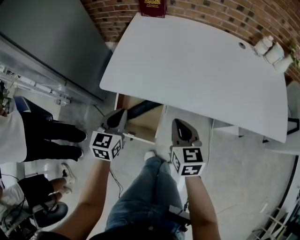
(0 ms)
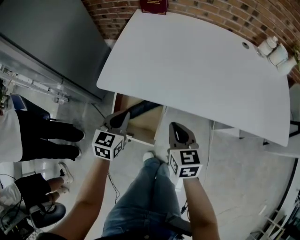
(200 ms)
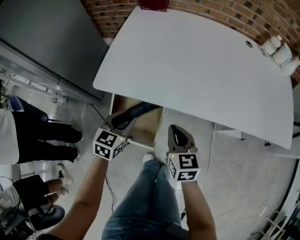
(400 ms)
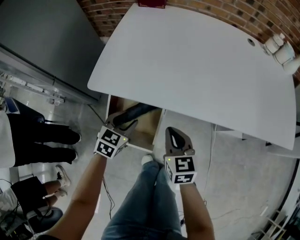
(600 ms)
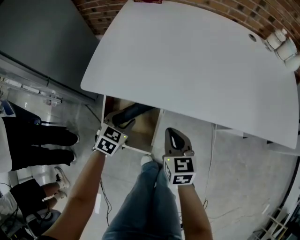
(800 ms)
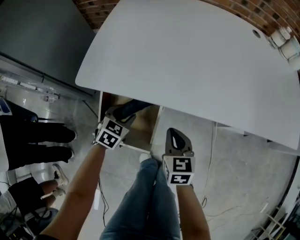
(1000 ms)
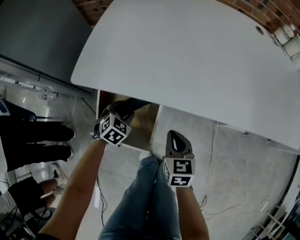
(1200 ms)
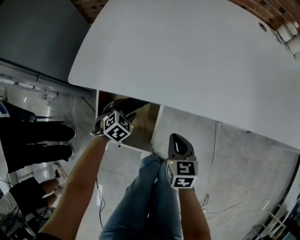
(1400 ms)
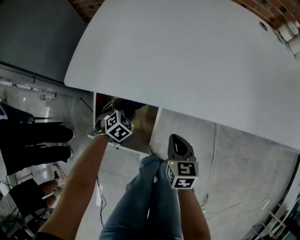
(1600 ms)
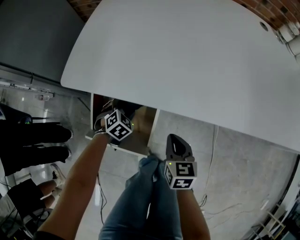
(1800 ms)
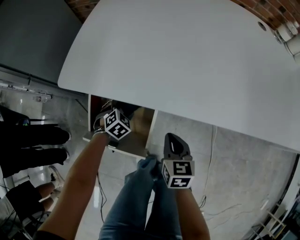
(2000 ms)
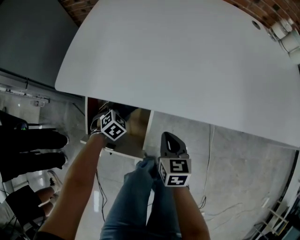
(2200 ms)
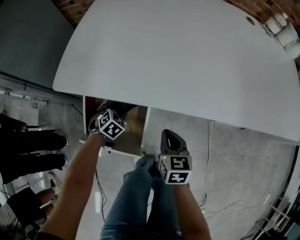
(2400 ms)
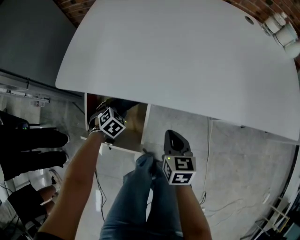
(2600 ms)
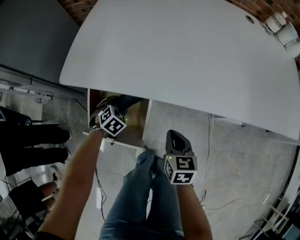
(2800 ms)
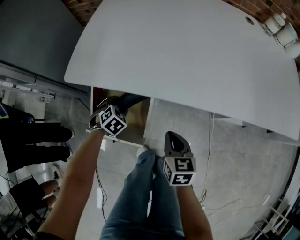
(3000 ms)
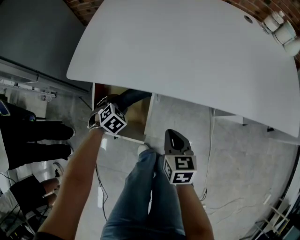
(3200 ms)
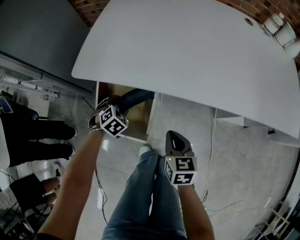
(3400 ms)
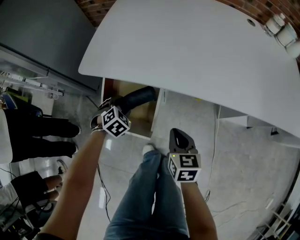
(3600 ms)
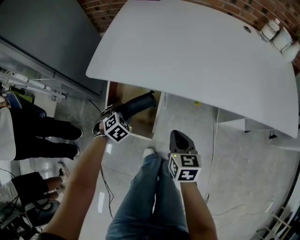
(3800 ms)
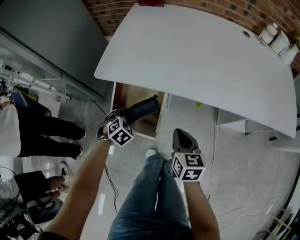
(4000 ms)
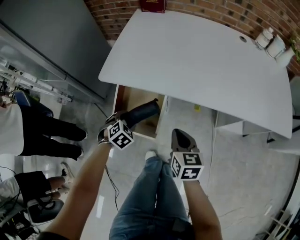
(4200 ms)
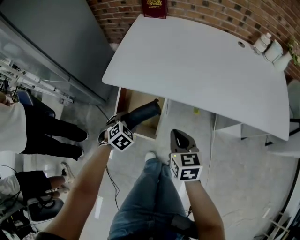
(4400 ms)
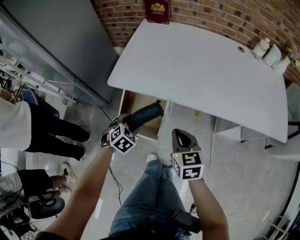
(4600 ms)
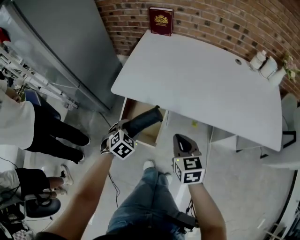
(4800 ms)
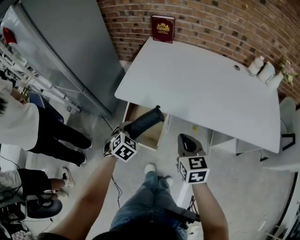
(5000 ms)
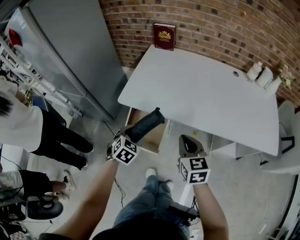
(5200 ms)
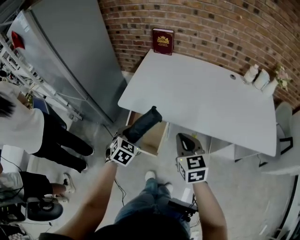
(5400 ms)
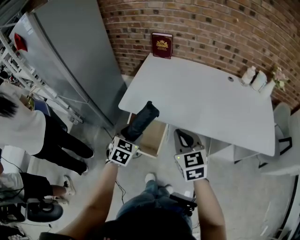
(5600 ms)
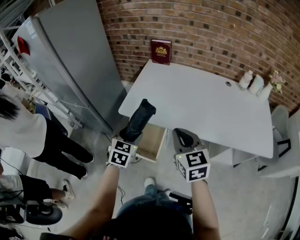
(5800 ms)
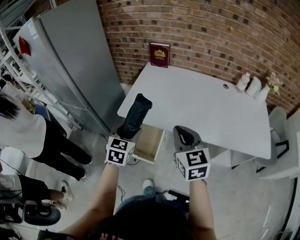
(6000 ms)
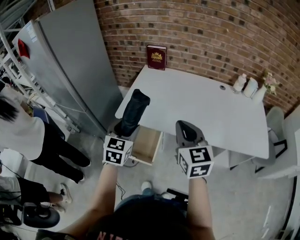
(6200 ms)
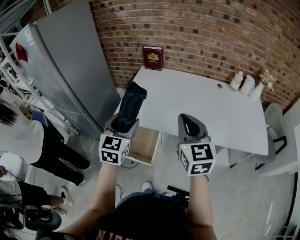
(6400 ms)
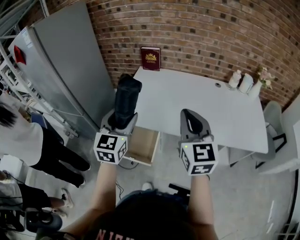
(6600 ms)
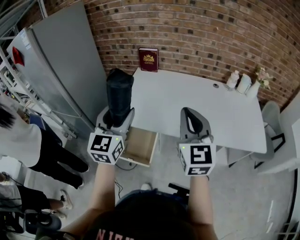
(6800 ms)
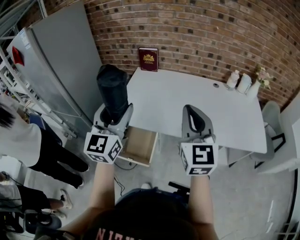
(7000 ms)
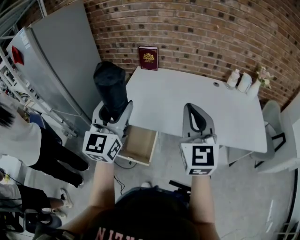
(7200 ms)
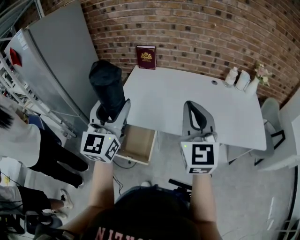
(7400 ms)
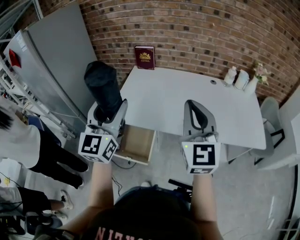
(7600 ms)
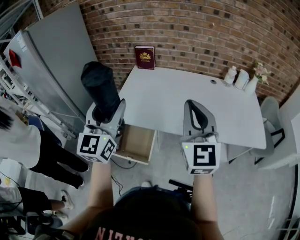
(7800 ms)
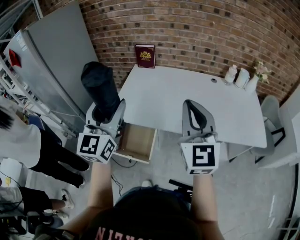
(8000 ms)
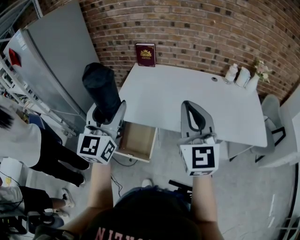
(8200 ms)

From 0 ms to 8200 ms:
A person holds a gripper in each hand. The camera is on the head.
From 0 ms to 1600 ms: The grippers both shift downward by some 30 cm. The left gripper tips its fingers downward by about 40 degrees, and opens.
From 1600 ms to 3200 ms: The left gripper moves roughly 5 cm, while the right gripper moves about 5 cm.
From 3200 ms to 5000 ms: The left gripper shifts some 30 cm upward and backward, while the right gripper is displaced upward by some 25 cm.
From 5000 ms to 6600 ms: The grippers both shift upward by some 30 cm. The right gripper changes its angle by some 30 degrees. Meanwhile the left gripper angles its fingers upward, by approximately 50 degrees.
From 6600 ms to 8200 ms: The left gripper is displaced upward by roughly 10 cm.

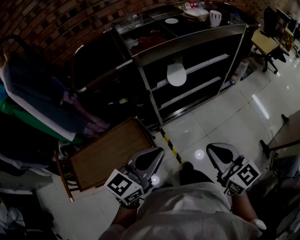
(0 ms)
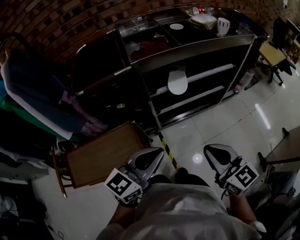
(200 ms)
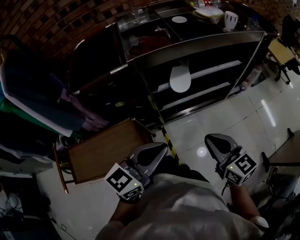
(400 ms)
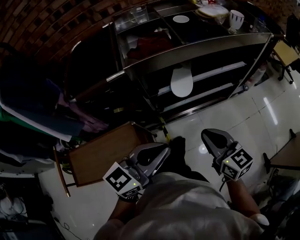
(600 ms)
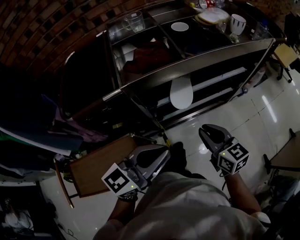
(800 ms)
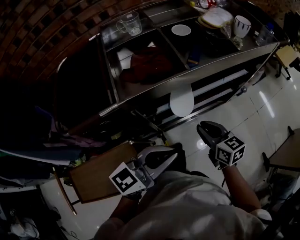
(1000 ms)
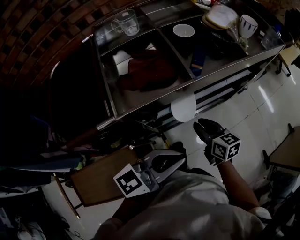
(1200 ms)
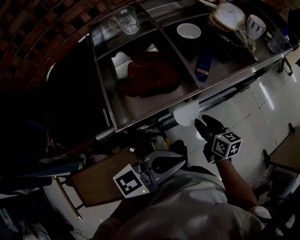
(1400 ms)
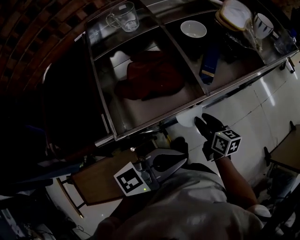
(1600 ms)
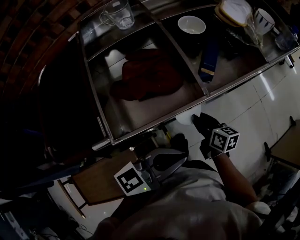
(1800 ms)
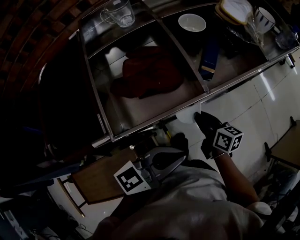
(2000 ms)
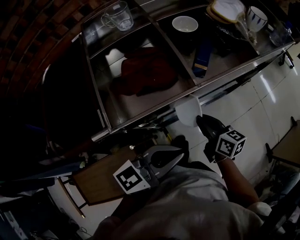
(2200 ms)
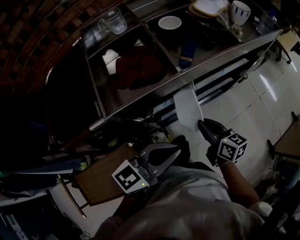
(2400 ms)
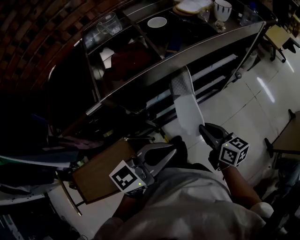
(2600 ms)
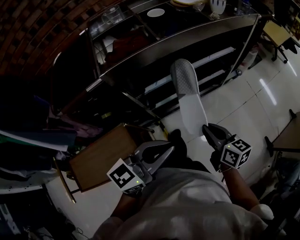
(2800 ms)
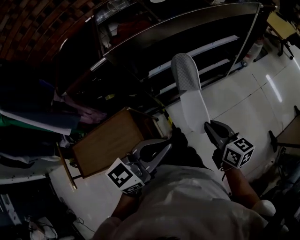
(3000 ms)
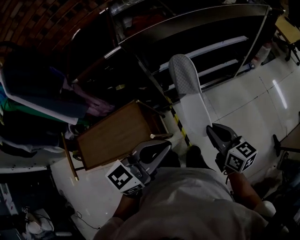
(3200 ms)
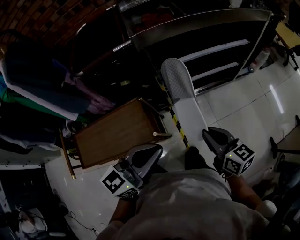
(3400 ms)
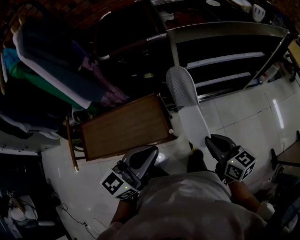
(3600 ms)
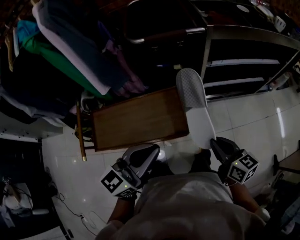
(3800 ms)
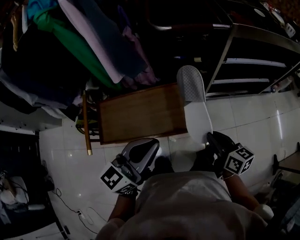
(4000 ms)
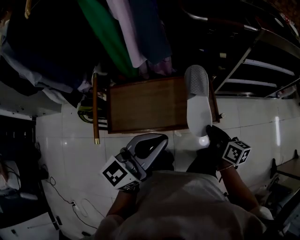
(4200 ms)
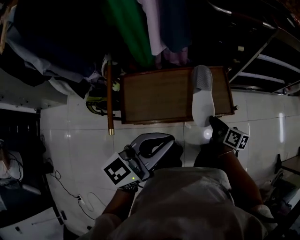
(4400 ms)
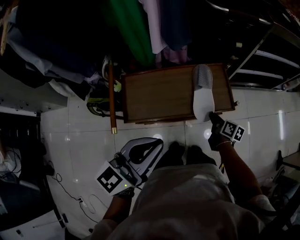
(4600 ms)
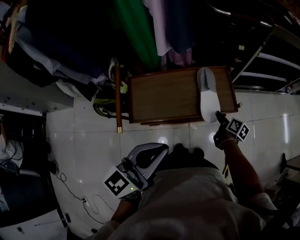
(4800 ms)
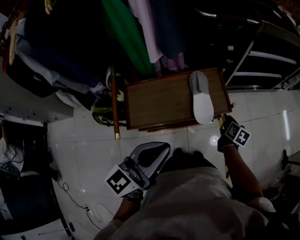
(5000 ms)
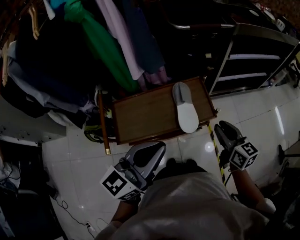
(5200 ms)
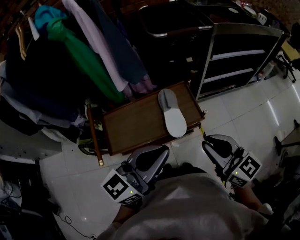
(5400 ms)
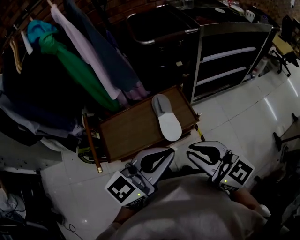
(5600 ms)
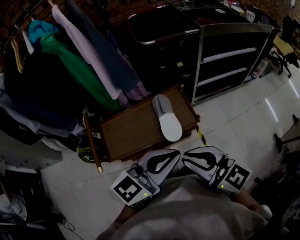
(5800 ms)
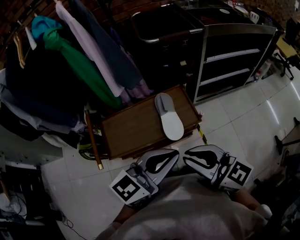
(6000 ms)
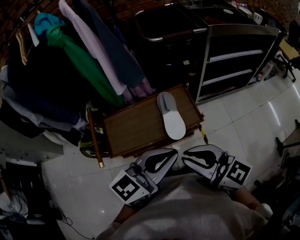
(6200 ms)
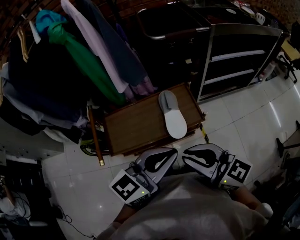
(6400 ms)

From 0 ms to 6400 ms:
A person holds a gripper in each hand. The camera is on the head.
From 0 ms to 1600 ms: The right gripper is displaced forward and downward by some 50 cm, turns by approximately 40 degrees, and opens its fingers. Meanwhile the left gripper moves forward, about 30 cm, and rotates roughly 20 degrees.
From 1600 ms to 3200 ms: The two grippers go roughly 25 cm backward. The right gripper closes its fingers.
From 3200 ms to 4800 ms: The two grippers travel together, to the left, roughly 50 cm. The left gripper swivels approximately 20 degrees. Meanwhile the right gripper moves downward, some 20 cm, swivels about 40 degrees, and opens its fingers.
From 4800 ms to 6400 ms: The left gripper travels to the right by approximately 15 cm. Meanwhile the right gripper is displaced upward and backward by about 40 cm, points its fingers approximately 40 degrees further upward, and closes its fingers.

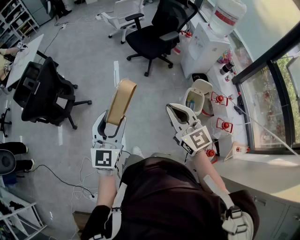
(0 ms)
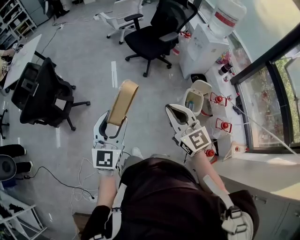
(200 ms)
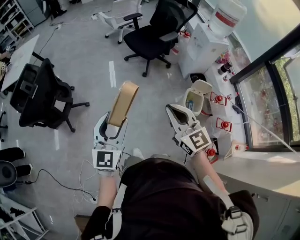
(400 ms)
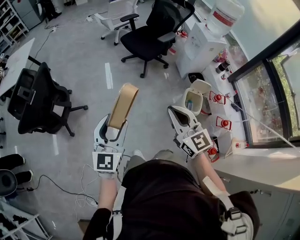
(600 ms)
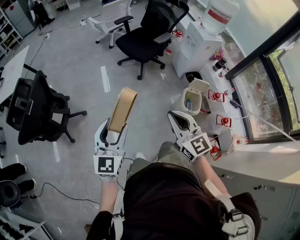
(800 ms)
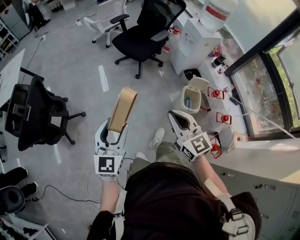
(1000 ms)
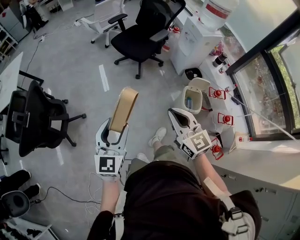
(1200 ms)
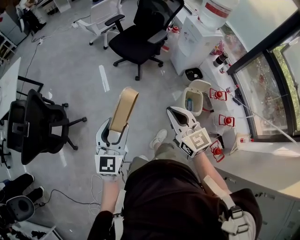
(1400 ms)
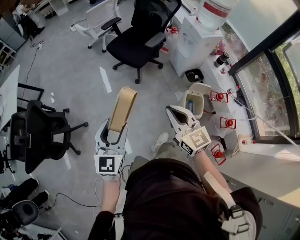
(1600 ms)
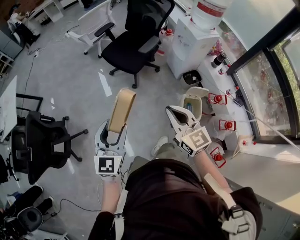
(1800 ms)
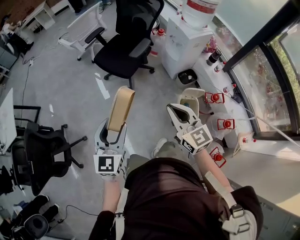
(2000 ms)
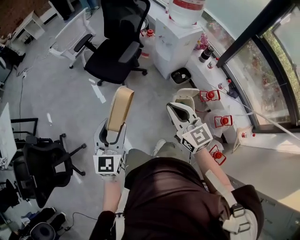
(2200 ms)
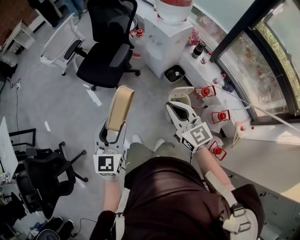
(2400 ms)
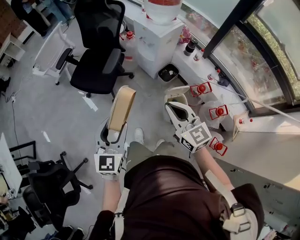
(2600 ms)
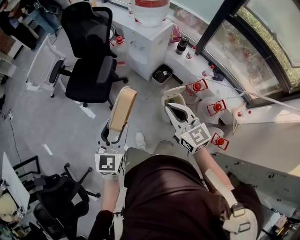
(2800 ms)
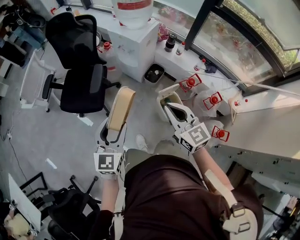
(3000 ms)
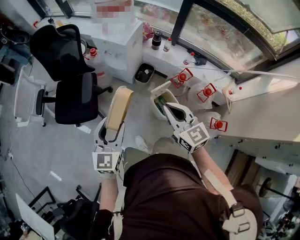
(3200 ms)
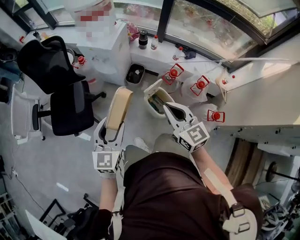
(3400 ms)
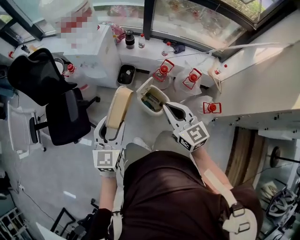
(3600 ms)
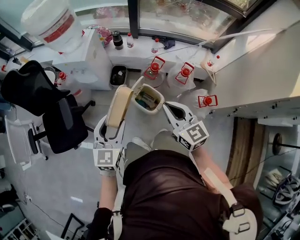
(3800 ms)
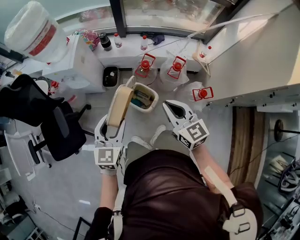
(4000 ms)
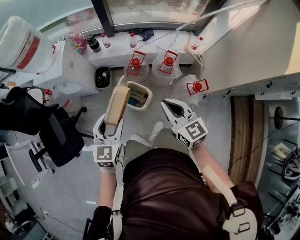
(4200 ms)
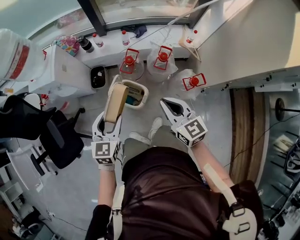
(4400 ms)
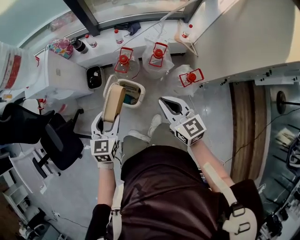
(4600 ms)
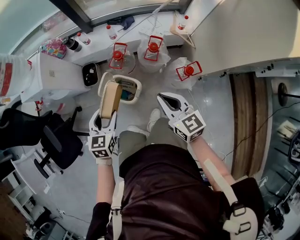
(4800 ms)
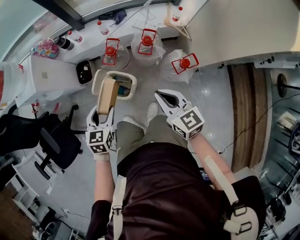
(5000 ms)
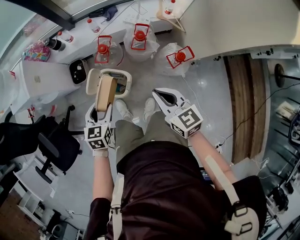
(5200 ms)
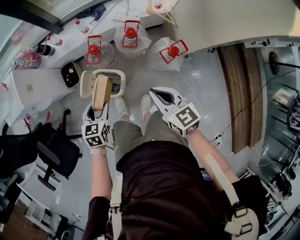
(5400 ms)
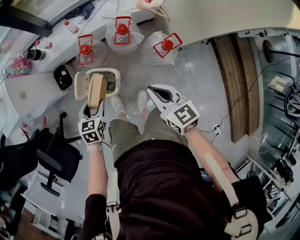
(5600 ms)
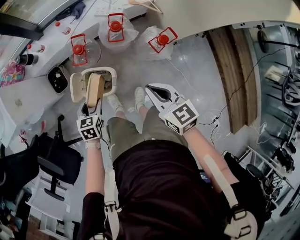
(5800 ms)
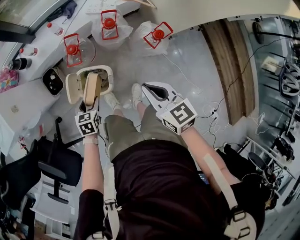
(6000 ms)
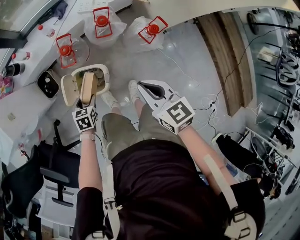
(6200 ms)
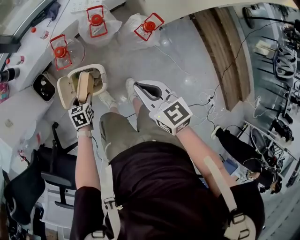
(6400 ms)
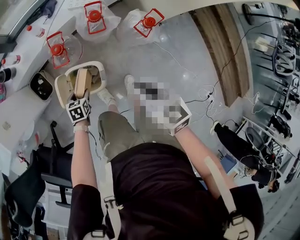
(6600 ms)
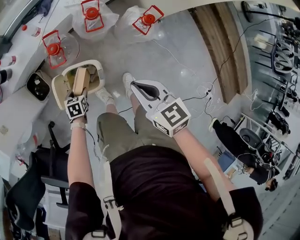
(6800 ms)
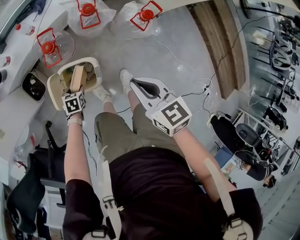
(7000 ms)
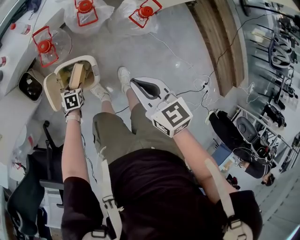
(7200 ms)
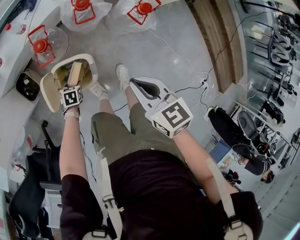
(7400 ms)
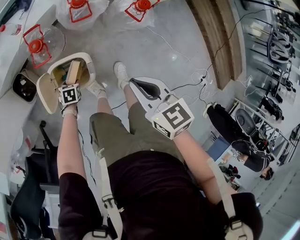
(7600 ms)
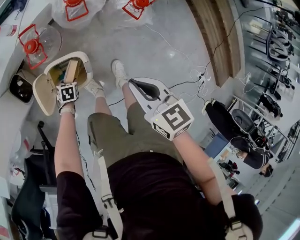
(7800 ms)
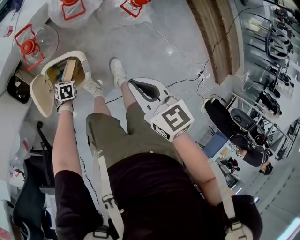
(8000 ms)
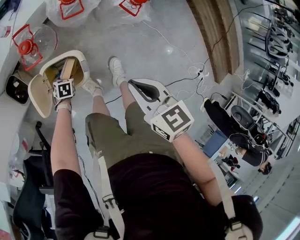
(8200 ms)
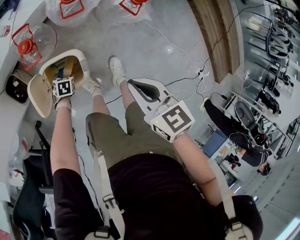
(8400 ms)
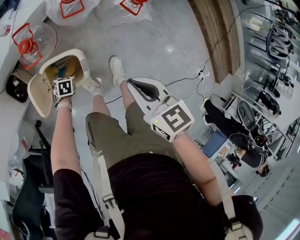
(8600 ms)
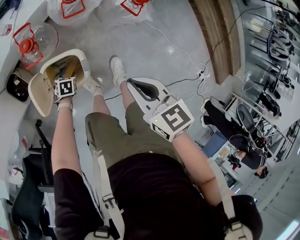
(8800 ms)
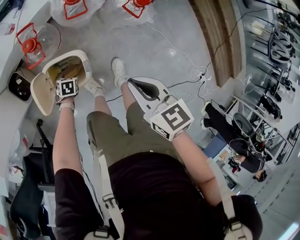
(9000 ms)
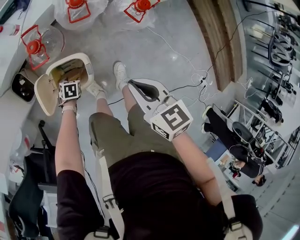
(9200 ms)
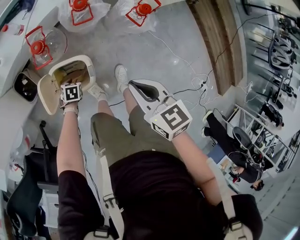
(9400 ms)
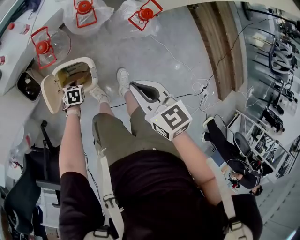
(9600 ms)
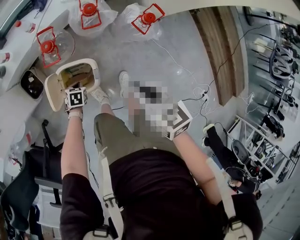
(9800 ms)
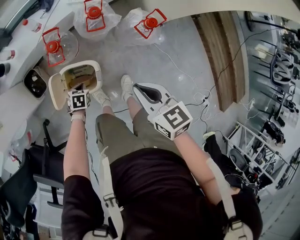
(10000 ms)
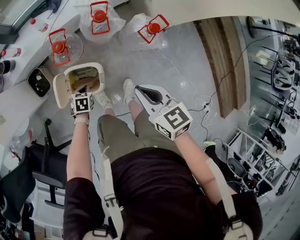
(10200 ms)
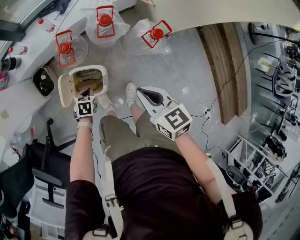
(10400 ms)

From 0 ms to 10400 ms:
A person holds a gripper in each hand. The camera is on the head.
From 0 ms to 1400 ms: The right gripper goes about 15 cm forward and downward. The left gripper moves forward, approximately 15 cm.
From 1400 ms to 3000 ms: The left gripper changes place by about 40 cm, and turns by some 40 degrees; the right gripper moves roughly 35 cm, and swivels some 40 degrees.
From 3000 ms to 4400 ms: The right gripper ends up approximately 30 cm from where it was, and rotates about 40 degrees. Meanwhile the left gripper moves roughly 30 cm, and changes its angle by approximately 40 degrees.
From 4400 ms to 6000 ms: The right gripper heads downward and to the right, covering about 15 cm, and turns by some 30 degrees. Meanwhile the left gripper travels downward by roughly 30 cm, and changes its angle by approximately 40 degrees.
From 6000 ms to 7400 ms: The left gripper is displaced downward by approximately 25 cm, and rotates approximately 20 degrees. The right gripper moves downward, roughly 10 cm.
From 7400 ms to 9000 ms: The left gripper ends up about 5 cm from where it was.
From 9000 ms to 10400 ms: The left gripper goes approximately 15 cm upward, and closes up; the right gripper moves upward, roughly 5 cm.
